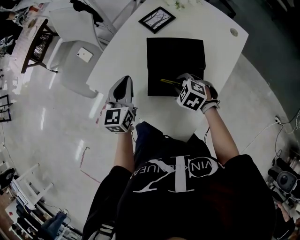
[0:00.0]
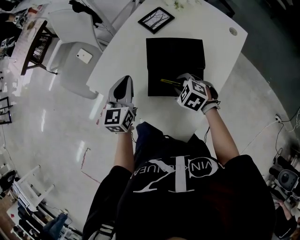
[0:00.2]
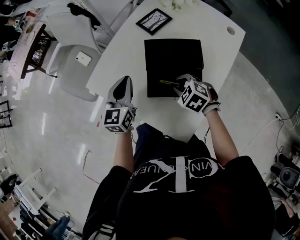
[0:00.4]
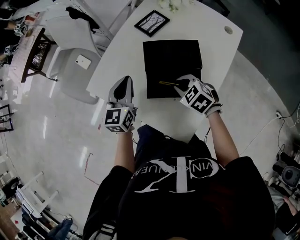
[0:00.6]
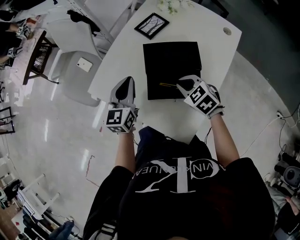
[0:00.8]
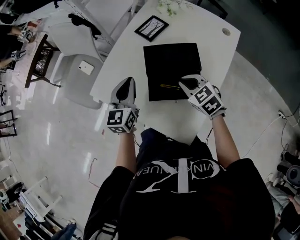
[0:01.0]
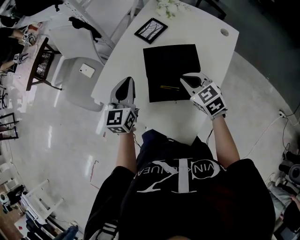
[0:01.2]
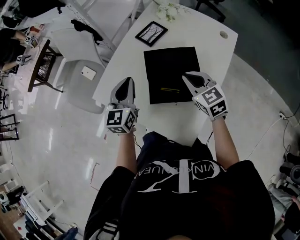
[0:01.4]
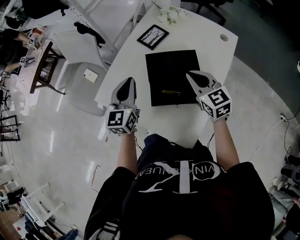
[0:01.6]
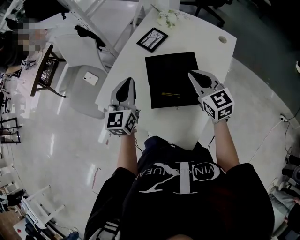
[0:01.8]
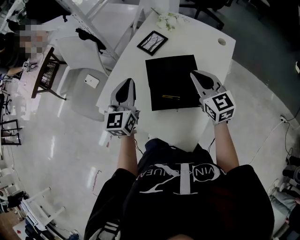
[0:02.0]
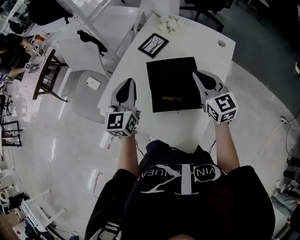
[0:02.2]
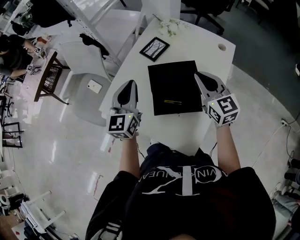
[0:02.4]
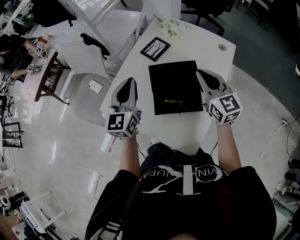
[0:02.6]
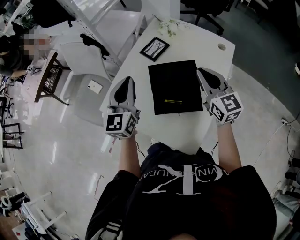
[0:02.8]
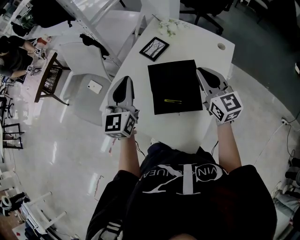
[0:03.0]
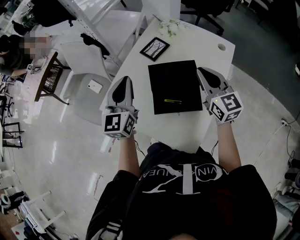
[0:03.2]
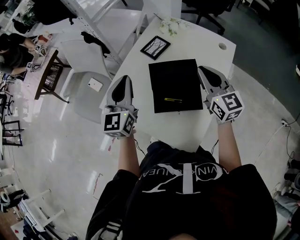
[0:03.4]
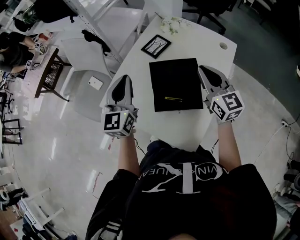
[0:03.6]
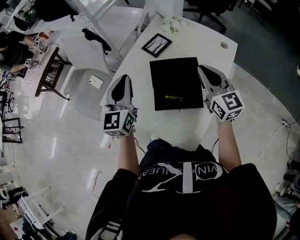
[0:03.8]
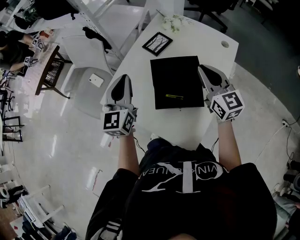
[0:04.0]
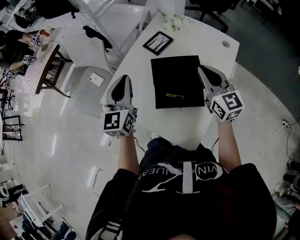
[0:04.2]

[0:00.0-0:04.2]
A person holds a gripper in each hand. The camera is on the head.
0:00.0 to 0:01.4: The right gripper travels upward by approximately 15 cm, and tips its fingers upward by approximately 40 degrees. The left gripper shifts by about 5 cm.
0:01.4 to 0:02.8: Both grippers travel together upward, about 10 cm. The right gripper turns by approximately 30 degrees.
0:02.8 to 0:04.2: There are only small adjustments of the grippers.

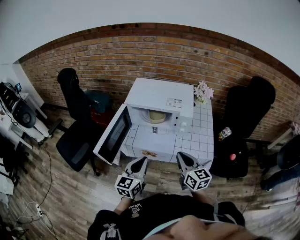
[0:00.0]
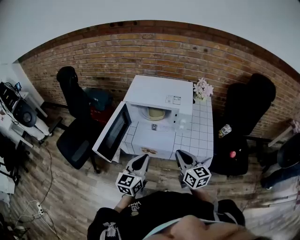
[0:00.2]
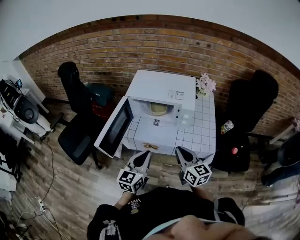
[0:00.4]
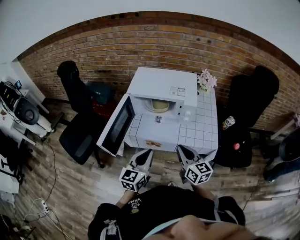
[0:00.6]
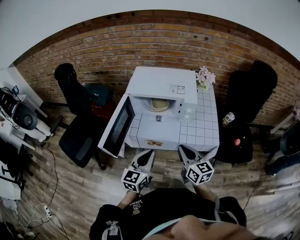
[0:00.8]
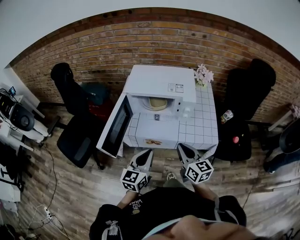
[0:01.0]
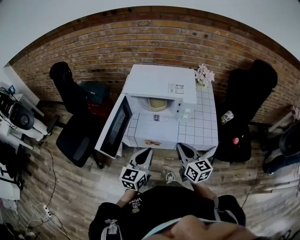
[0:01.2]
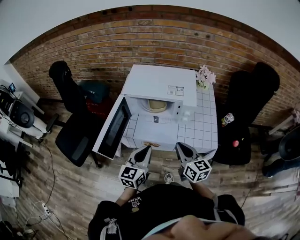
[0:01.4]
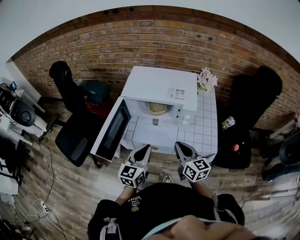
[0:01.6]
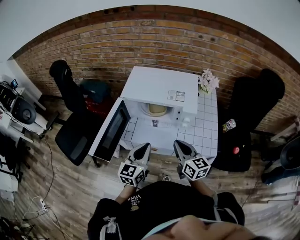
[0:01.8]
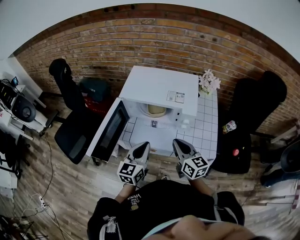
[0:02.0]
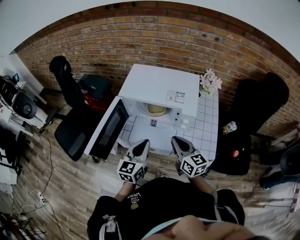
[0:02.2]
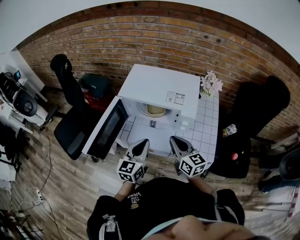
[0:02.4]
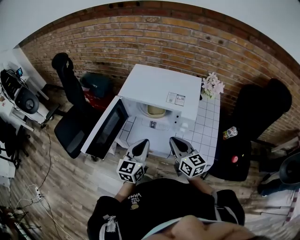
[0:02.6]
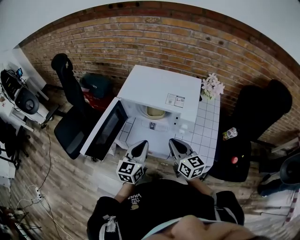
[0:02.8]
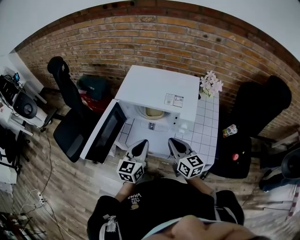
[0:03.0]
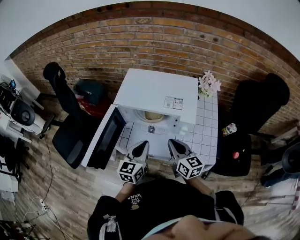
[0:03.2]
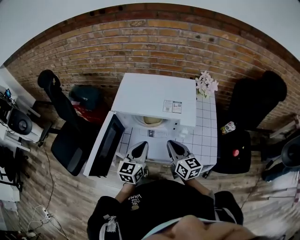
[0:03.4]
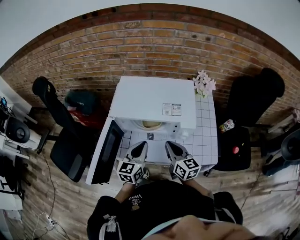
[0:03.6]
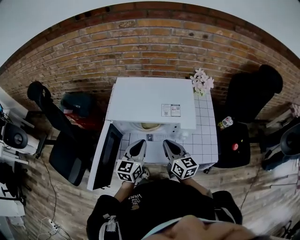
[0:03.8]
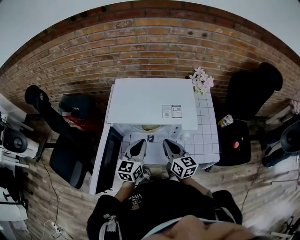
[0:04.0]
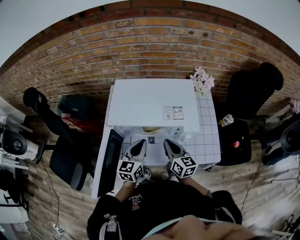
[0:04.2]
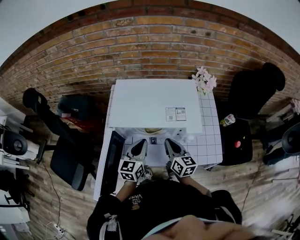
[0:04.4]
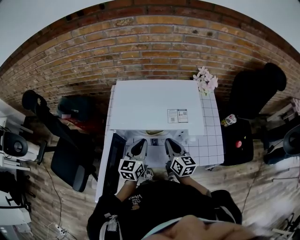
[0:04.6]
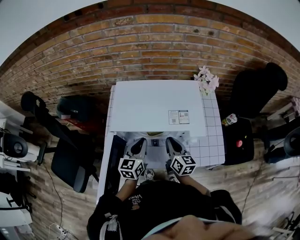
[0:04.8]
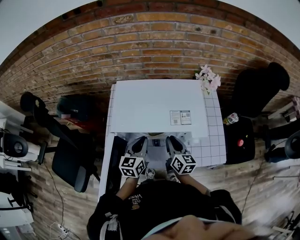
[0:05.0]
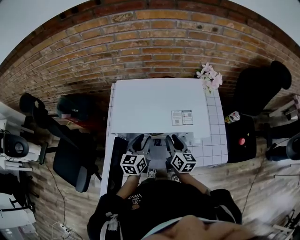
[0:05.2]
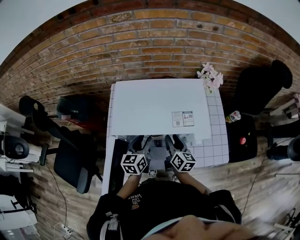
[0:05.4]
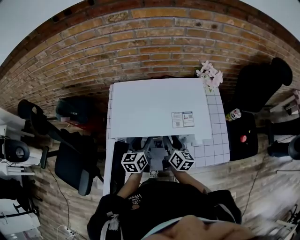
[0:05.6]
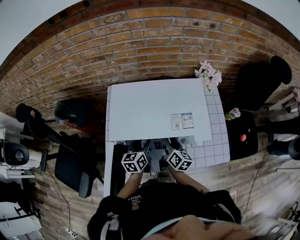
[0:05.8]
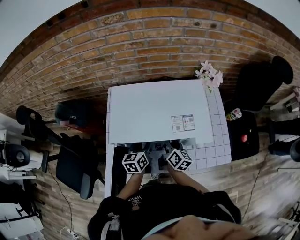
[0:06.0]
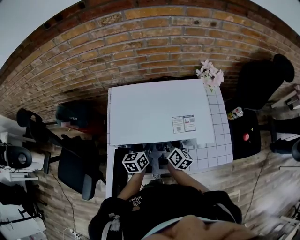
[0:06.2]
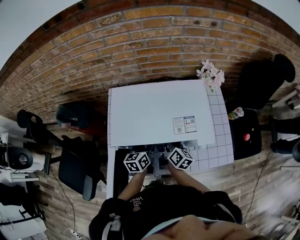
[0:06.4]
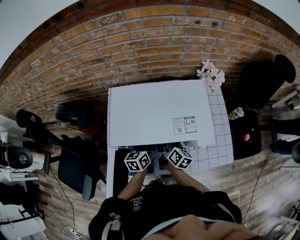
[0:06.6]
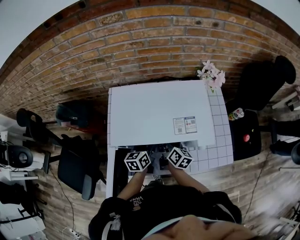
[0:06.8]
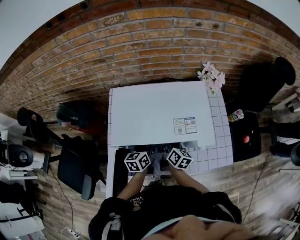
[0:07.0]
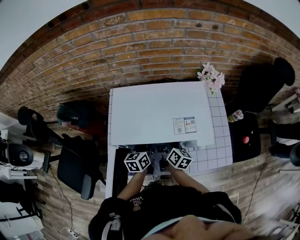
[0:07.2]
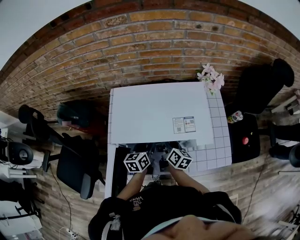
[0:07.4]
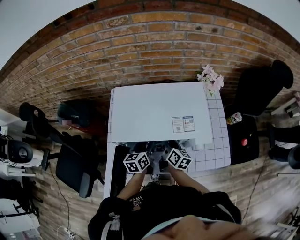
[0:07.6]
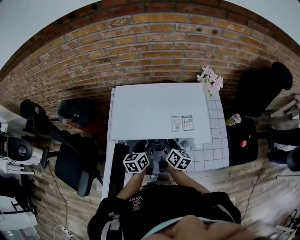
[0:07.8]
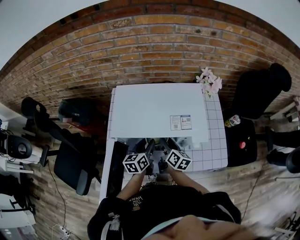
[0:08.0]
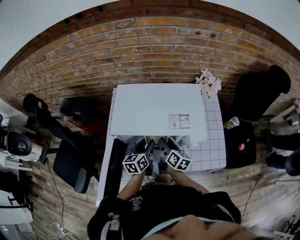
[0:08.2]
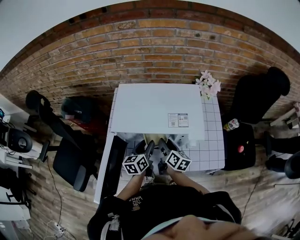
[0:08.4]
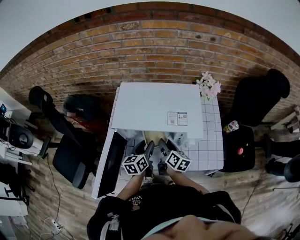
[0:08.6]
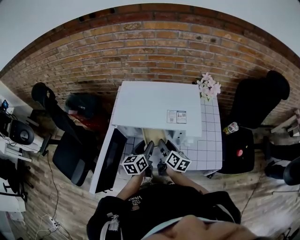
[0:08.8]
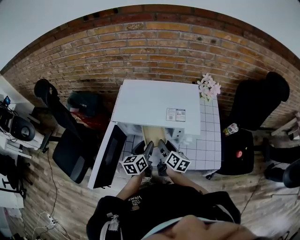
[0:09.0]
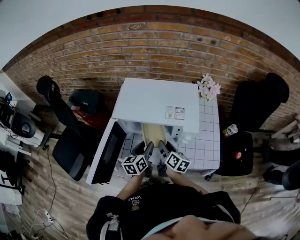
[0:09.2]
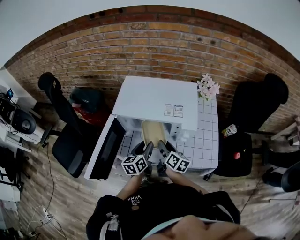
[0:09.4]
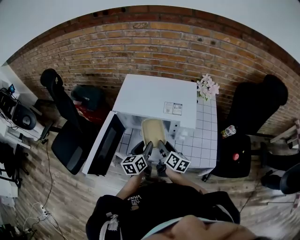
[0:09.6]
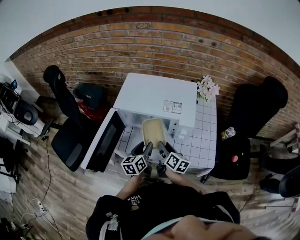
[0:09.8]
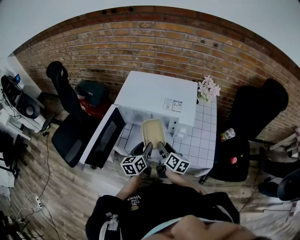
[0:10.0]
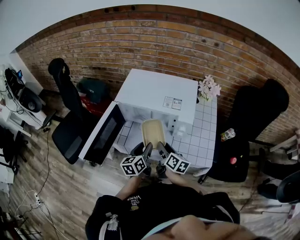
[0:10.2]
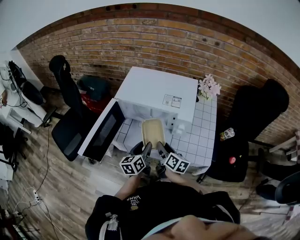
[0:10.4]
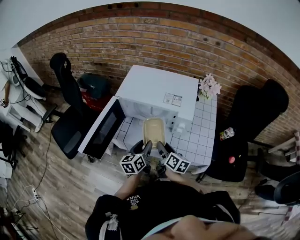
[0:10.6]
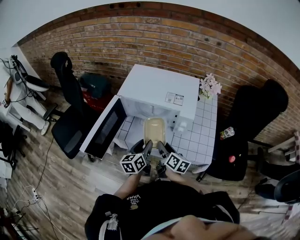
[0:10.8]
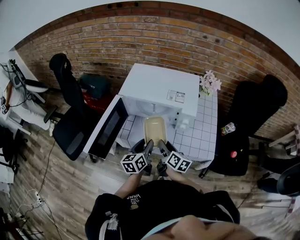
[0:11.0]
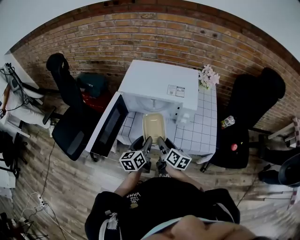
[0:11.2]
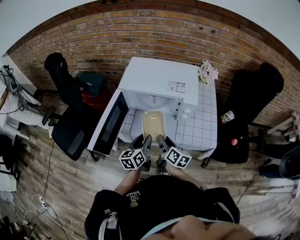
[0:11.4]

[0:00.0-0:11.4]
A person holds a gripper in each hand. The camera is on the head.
0:00.0 to 0:01.4: The grippers move only a little.
0:01.4 to 0:02.8: Both grippers move forward, roughly 10 cm.
0:02.8 to 0:04.2: The two grippers go roughly 10 cm forward. The right gripper swivels roughly 20 degrees.
0:04.2 to 0:05.6: The grippers both shift forward and downward by about 10 cm. The left gripper opens its fingers, while the right gripper changes its angle by some 20 degrees, and opens.
0:05.6 to 0:07.2: The grippers stay close to where they were, moving slightly.
0:07.2 to 0:08.6: The two grippers go some 5 cm backward.
0:08.6 to 0:10.0: The grippers both shift backward by some 10 cm.
0:10.0 to 0:11.4: The grippers both shift backward by some 5 cm.

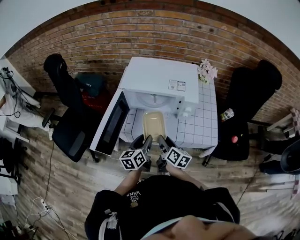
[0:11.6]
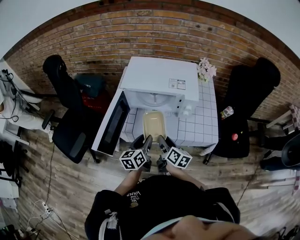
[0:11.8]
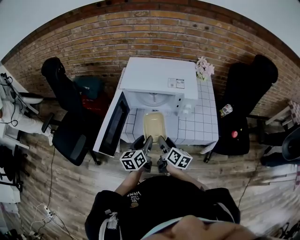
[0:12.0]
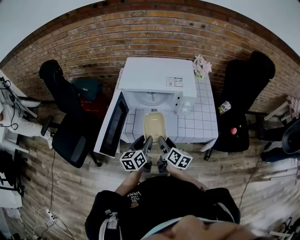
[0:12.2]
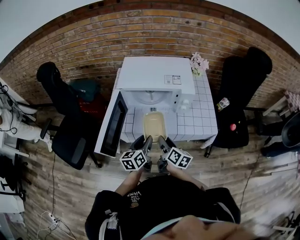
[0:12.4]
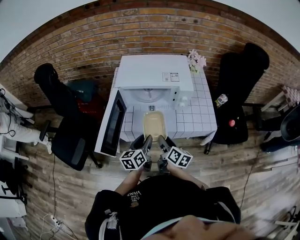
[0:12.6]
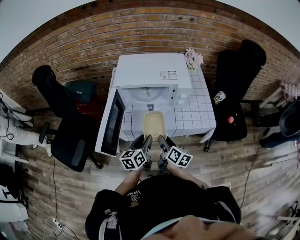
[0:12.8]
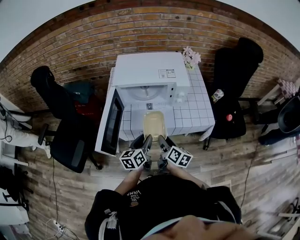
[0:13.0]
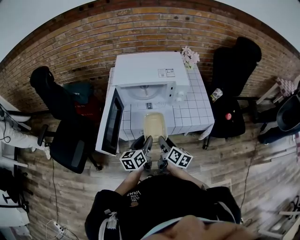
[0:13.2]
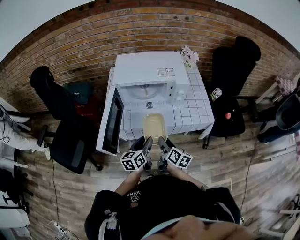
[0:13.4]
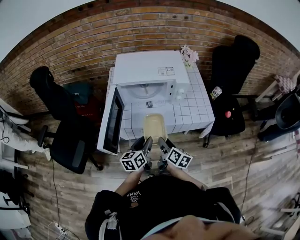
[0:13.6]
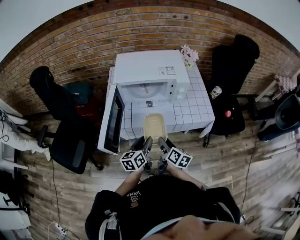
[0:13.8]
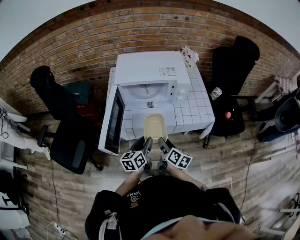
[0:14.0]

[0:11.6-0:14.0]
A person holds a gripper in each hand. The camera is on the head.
0:11.6 to 0:12.8: The right gripper travels backward by about 5 cm.
0:12.8 to 0:14.0: There are only small adjustments of the grippers.

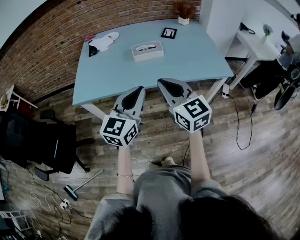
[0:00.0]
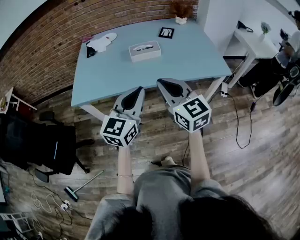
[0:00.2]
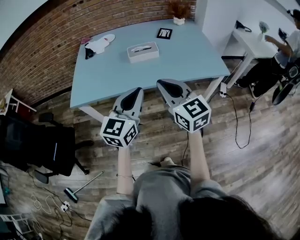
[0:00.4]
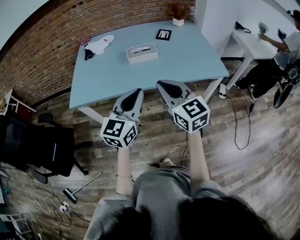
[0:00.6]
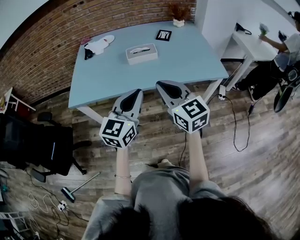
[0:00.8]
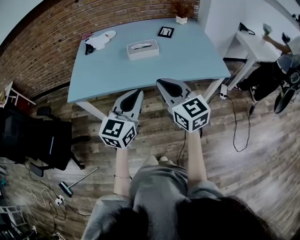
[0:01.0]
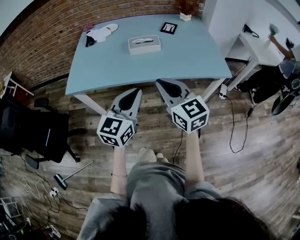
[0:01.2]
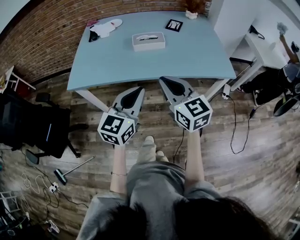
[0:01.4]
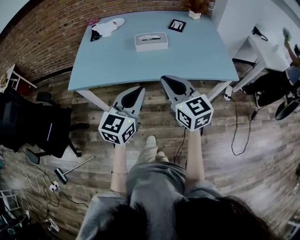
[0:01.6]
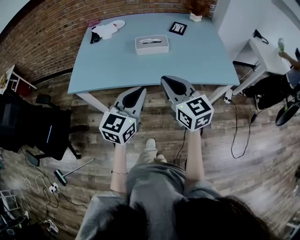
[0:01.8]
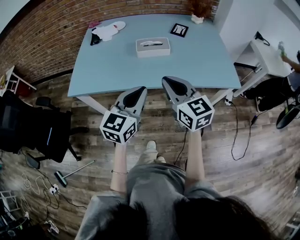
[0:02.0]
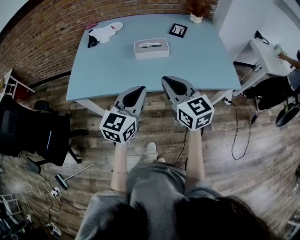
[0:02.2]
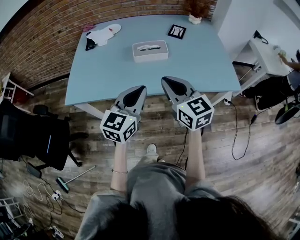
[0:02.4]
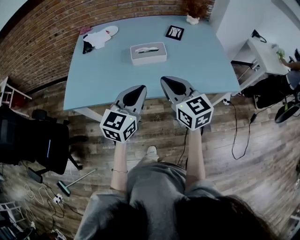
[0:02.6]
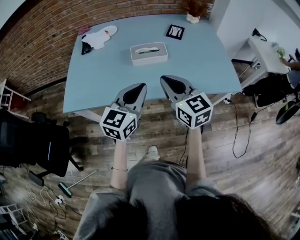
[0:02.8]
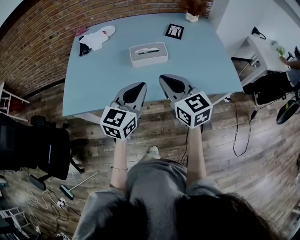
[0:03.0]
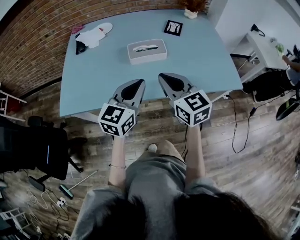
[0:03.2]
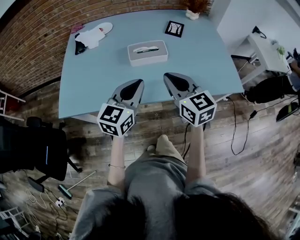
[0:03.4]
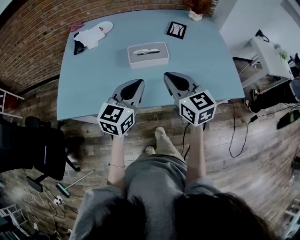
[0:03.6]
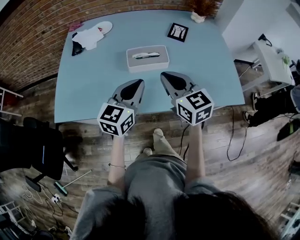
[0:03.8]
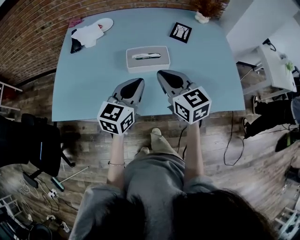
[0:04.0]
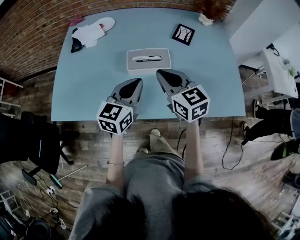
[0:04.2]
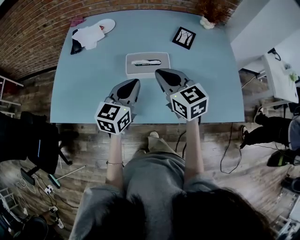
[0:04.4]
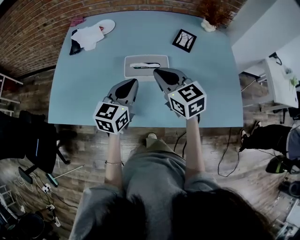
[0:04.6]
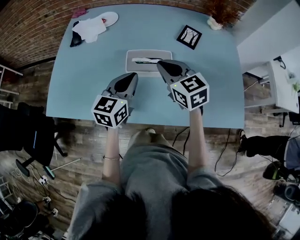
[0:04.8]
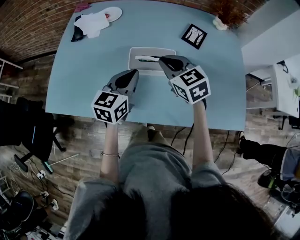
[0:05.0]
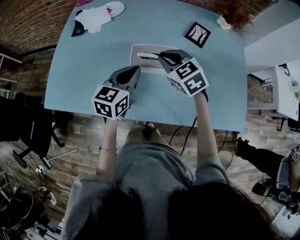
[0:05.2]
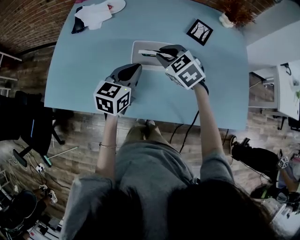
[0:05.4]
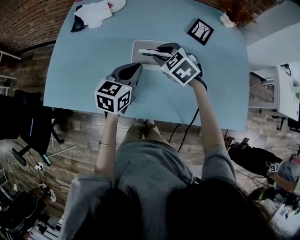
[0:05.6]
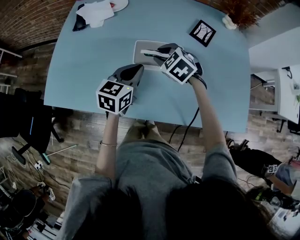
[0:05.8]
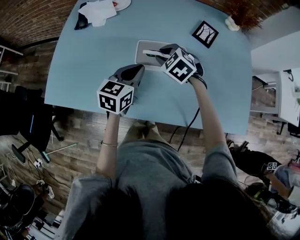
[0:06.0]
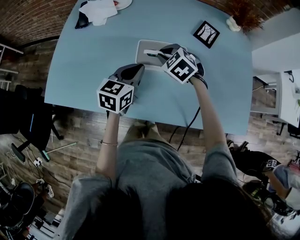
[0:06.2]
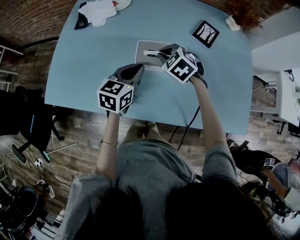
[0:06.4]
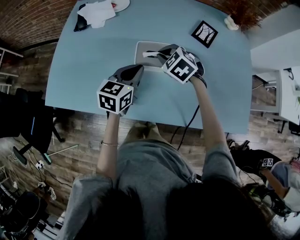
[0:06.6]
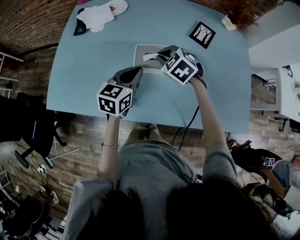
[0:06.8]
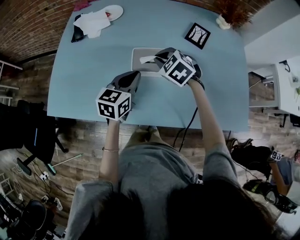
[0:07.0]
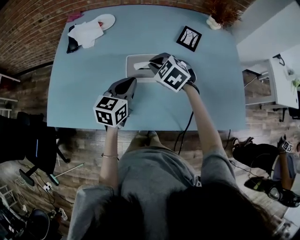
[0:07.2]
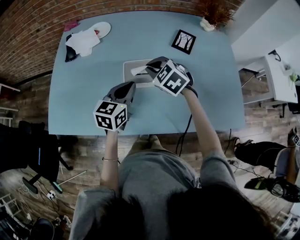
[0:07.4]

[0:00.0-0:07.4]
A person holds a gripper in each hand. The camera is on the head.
0:00.0 to 0:01.4: The left gripper ends up some 5 cm from where it was; the right gripper shifts by roughly 5 cm.
0:01.4 to 0:03.0: The two grippers go about 20 cm forward.
0:03.0 to 0:04.4: Both grippers travel together forward, some 20 cm.
0:04.4 to 0:06.0: The right gripper shifts about 20 cm downward and forward, points its fingers about 40 degrees further downward, and opens its fingers, while the left gripper shifts approximately 10 cm downward and forward.
0:06.0 to 0:07.4: The right gripper travels upward by about 5 cm, and closes.
